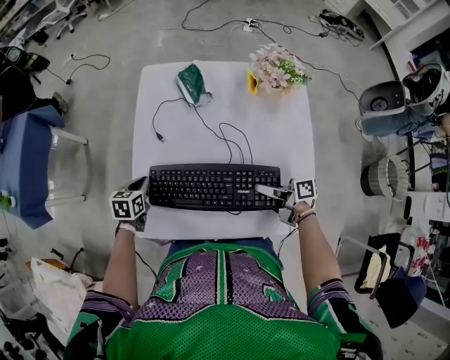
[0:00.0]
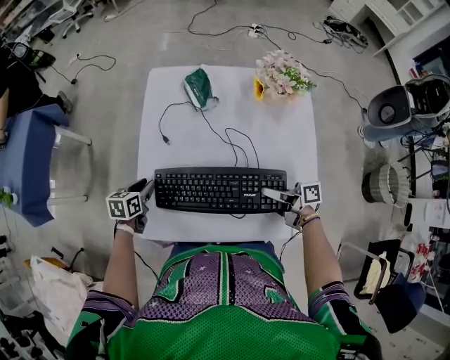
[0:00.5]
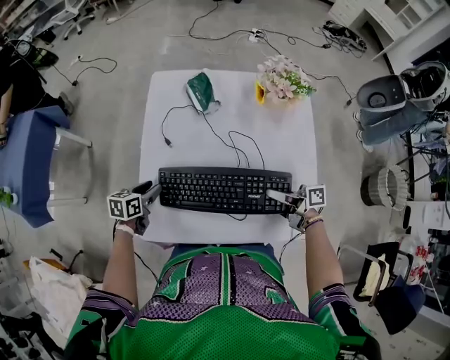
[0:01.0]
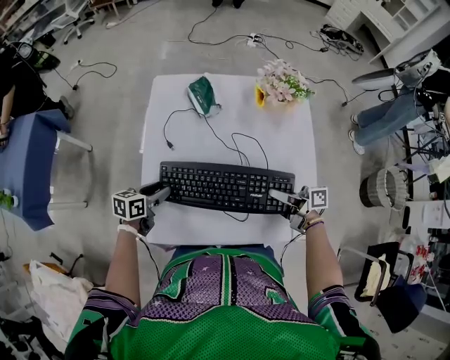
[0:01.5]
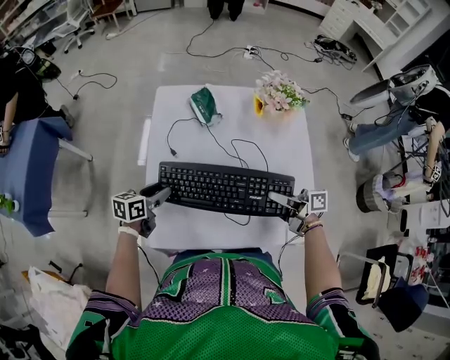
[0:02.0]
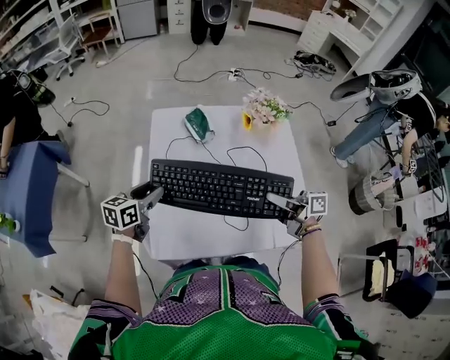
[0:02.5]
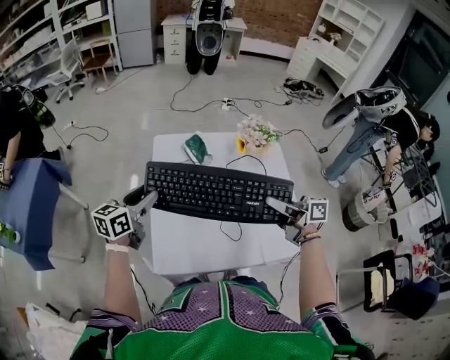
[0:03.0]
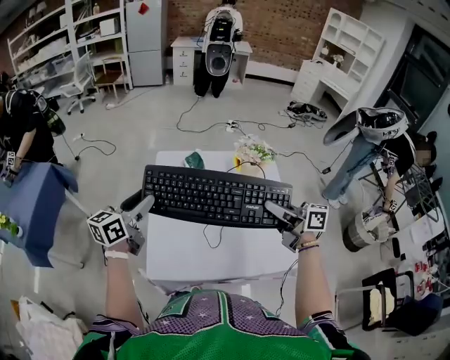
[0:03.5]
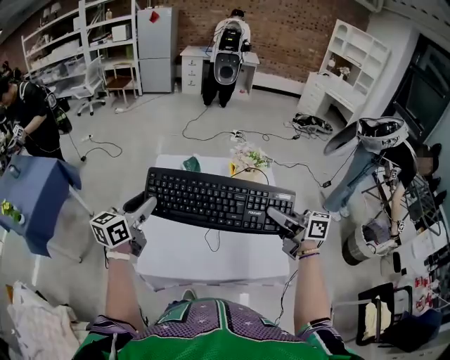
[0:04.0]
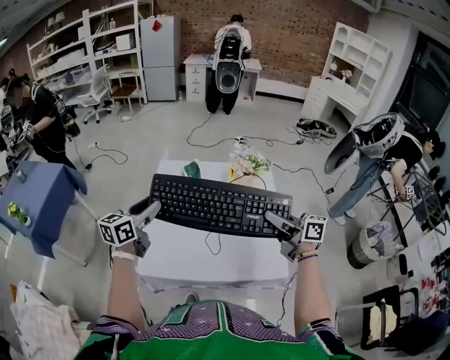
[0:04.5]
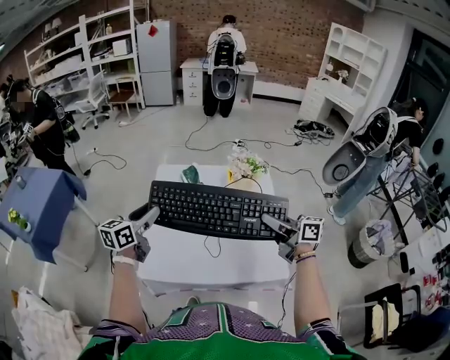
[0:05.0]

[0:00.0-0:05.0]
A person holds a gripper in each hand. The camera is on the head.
0:00.0 to 0:02.5: Both grippers move upward, approximately 15 cm. The left gripper turns by approximately 30 degrees, and opens, while the right gripper swivels roughly 20 degrees.
0:02.5 to 0:05.0: The right gripper goes some 15 cm upward and to the right, while the left gripper heads upward and backward, covering some 20 cm, and changes its angle by some 20 degrees.

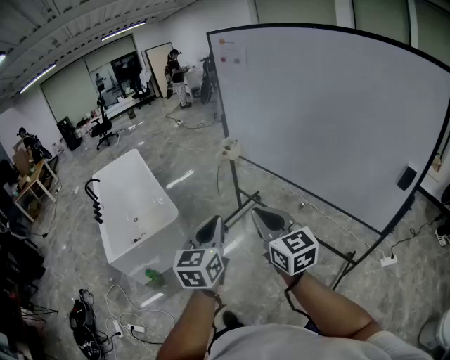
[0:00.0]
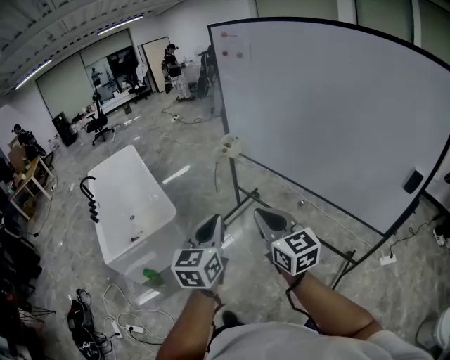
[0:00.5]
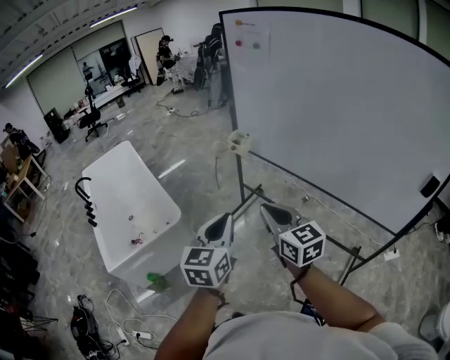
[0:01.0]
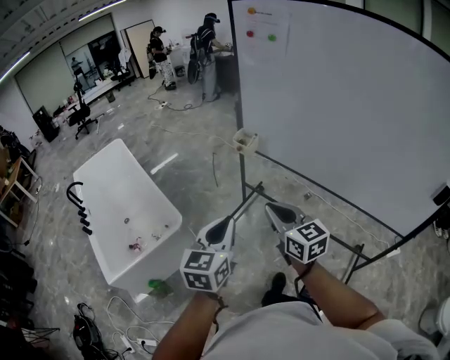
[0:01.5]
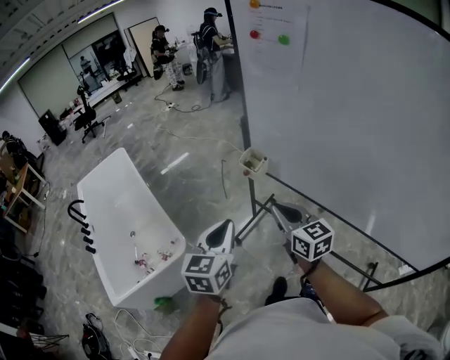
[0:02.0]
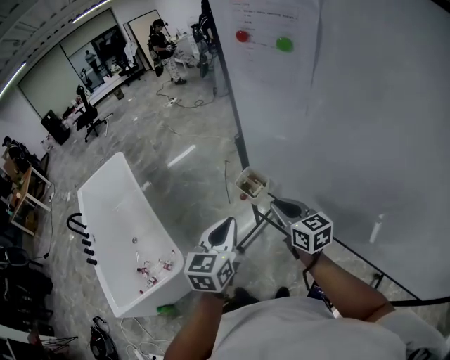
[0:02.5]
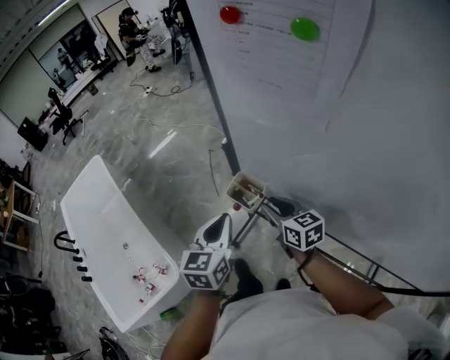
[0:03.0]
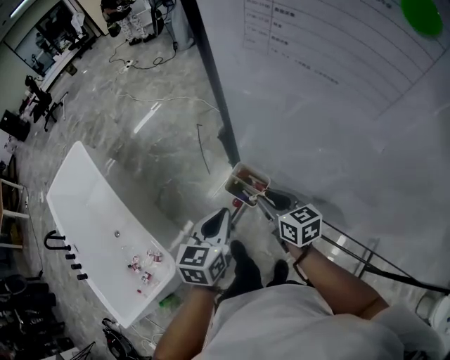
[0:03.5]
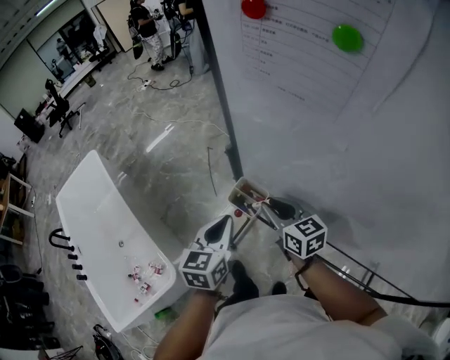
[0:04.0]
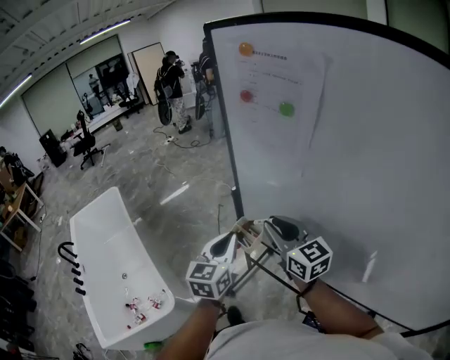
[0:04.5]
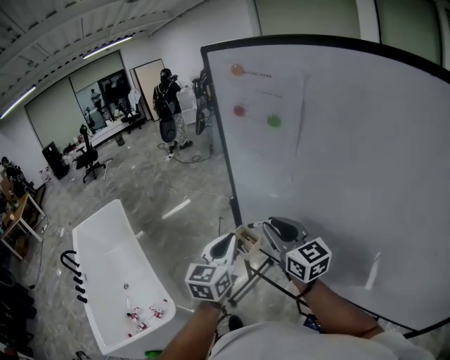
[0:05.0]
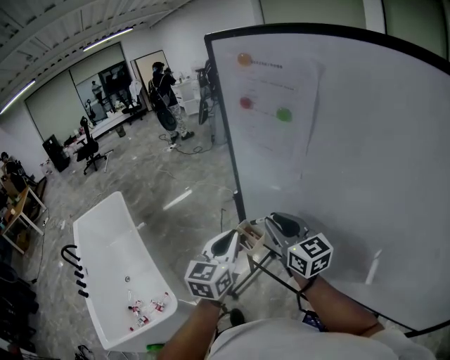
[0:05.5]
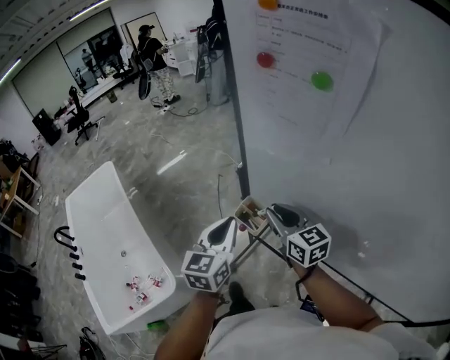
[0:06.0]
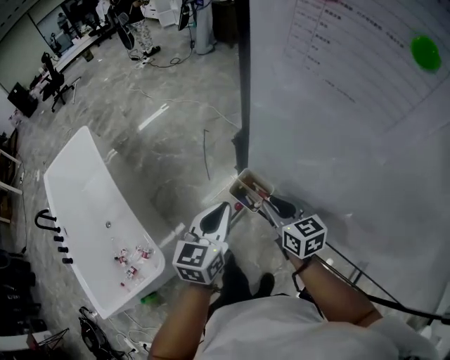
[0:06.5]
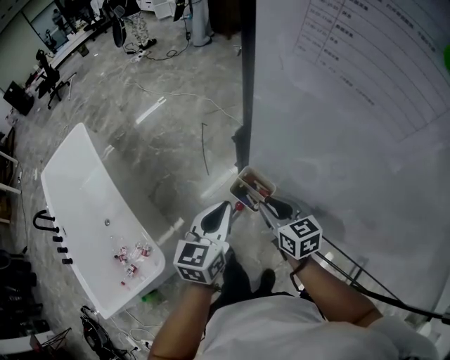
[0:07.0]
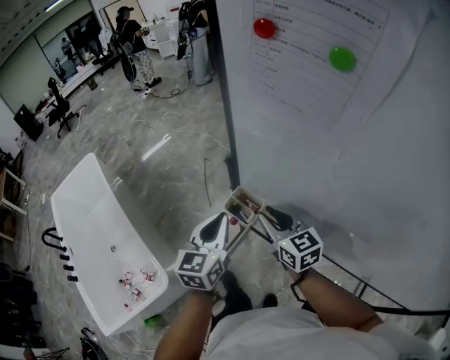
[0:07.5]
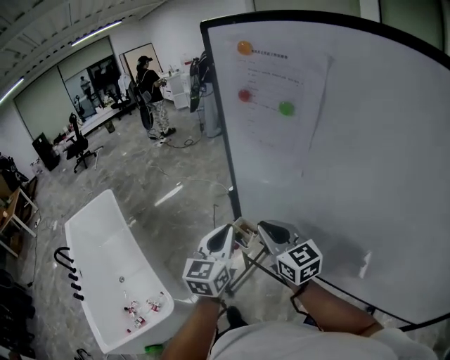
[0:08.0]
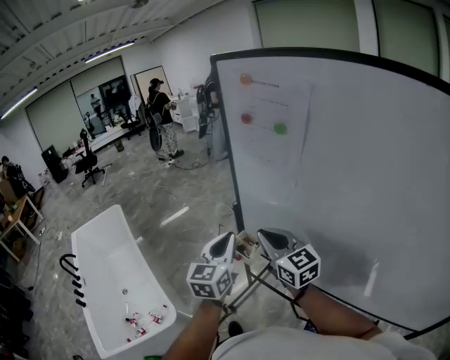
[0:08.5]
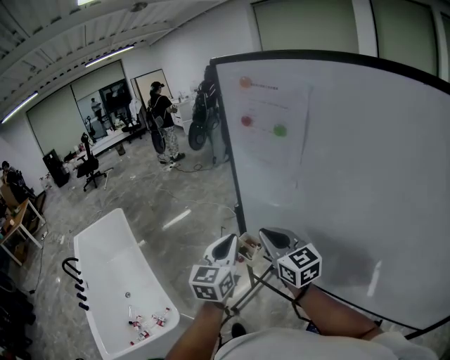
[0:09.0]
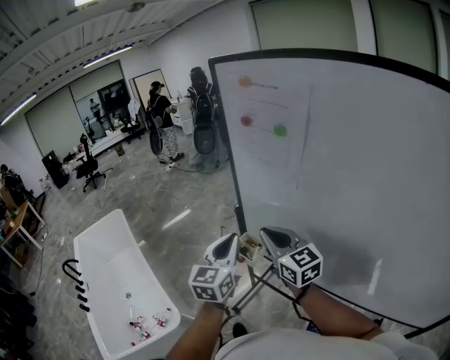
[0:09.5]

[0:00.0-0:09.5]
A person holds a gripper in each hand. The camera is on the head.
0:00.0 to 0:02.0: The two grippers travel together, forward, some 50 cm.
0:02.0 to 0:04.0: The two grippers go some 35 cm forward.
0:04.0 to 0:05.5: Both grippers move upward and backward, roughly 20 cm. The right gripper rotates about 20 degrees.
0:05.5 to 0:07.5: The two grippers go roughly 15 cm downward and forward.
0:07.5 to 0:09.5: The two grippers go about 20 cm upward and backward. The right gripper closes its fingers.

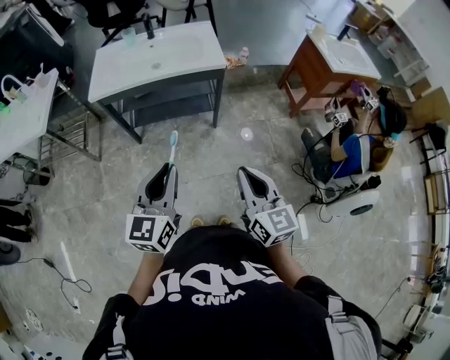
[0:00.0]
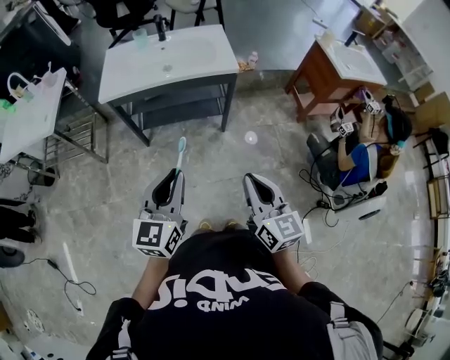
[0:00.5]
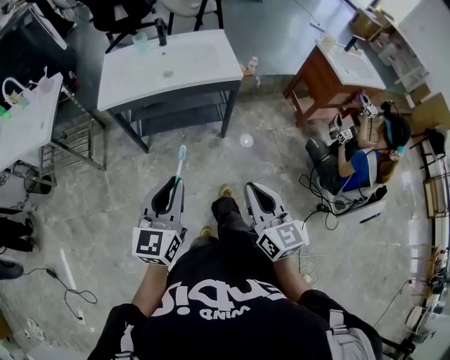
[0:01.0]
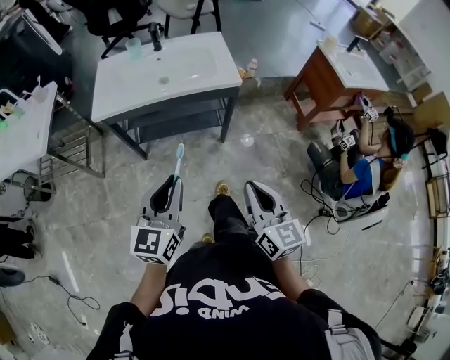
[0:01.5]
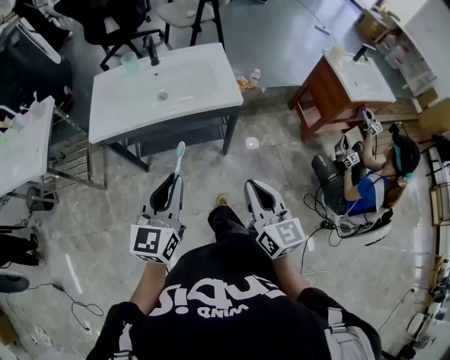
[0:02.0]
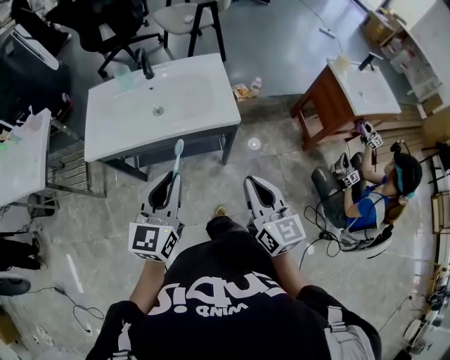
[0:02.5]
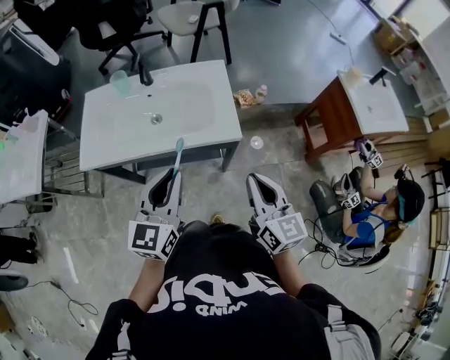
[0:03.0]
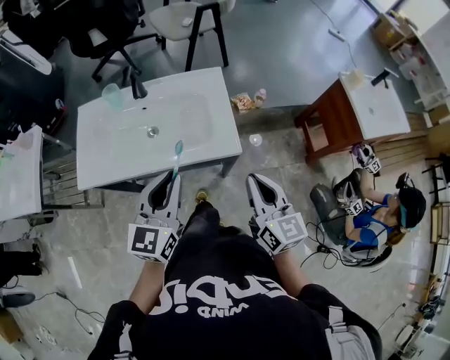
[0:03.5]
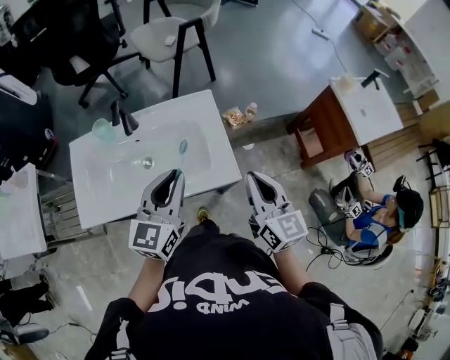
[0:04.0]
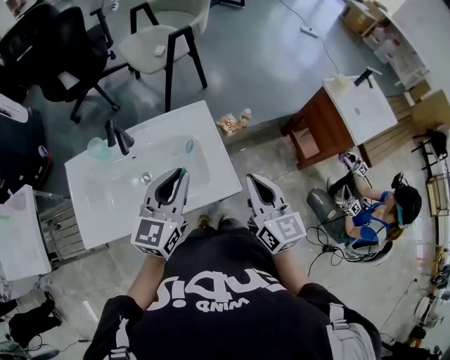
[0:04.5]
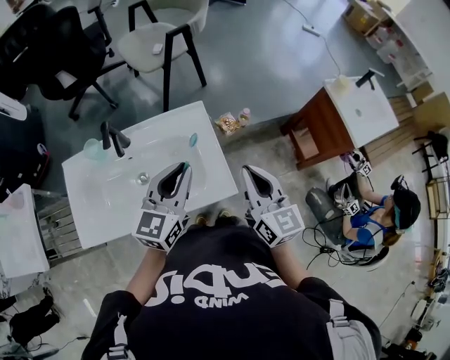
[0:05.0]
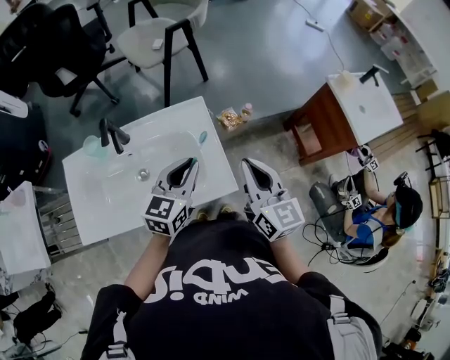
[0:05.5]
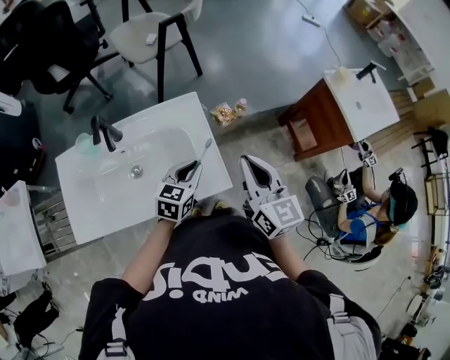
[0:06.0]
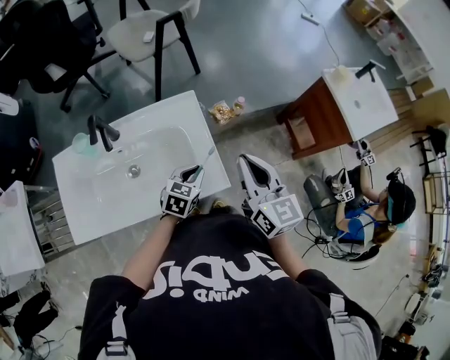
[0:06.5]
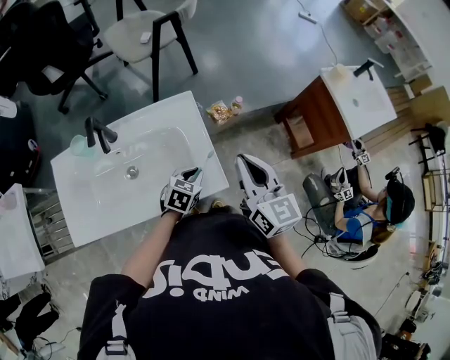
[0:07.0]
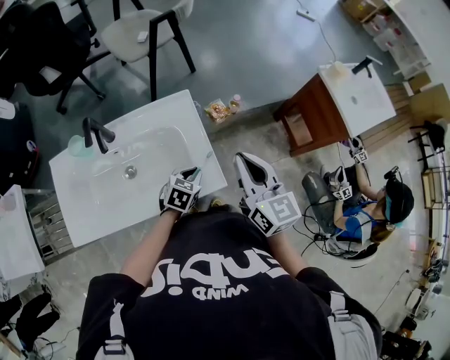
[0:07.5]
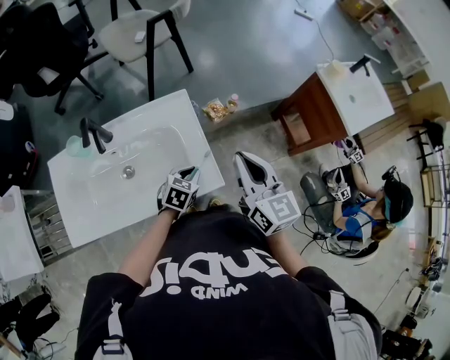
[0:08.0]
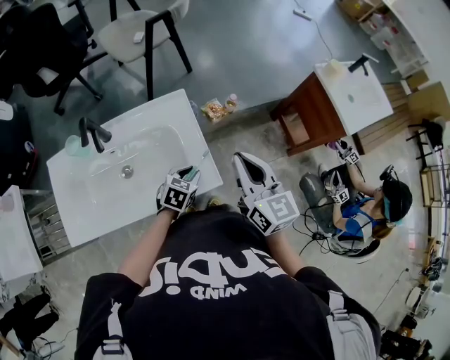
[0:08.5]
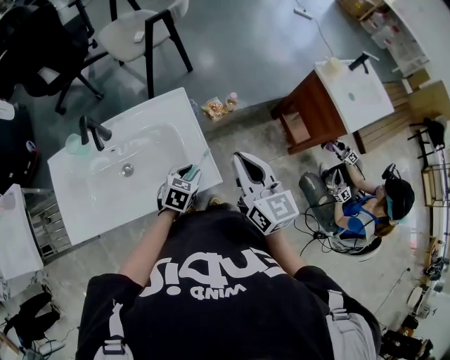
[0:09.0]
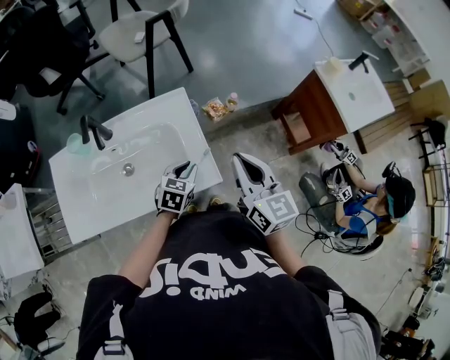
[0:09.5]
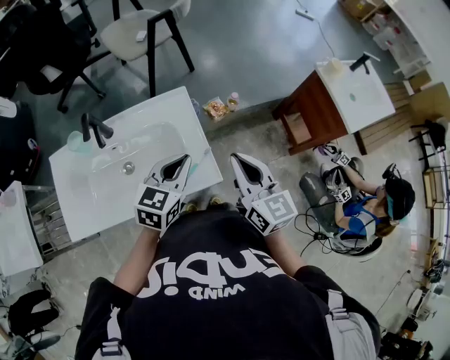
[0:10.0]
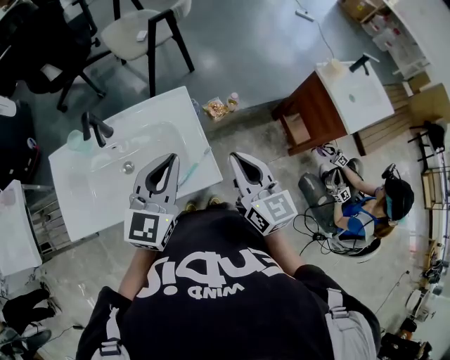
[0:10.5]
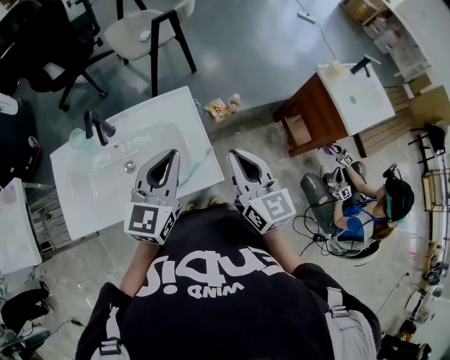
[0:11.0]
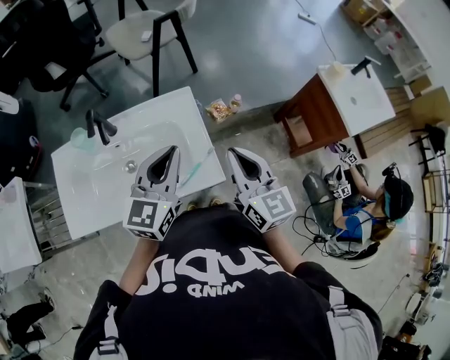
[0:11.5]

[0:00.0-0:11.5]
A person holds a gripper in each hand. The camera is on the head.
0:00.0 to 0:02.0: Both grippers travel together forward, some 20 cm.
0:02.0 to 0:04.0: The grippers both shift forward by about 35 cm.
0:04.0 to 0:06.0: The right gripper moves forward, roughly 10 cm. The left gripper is displaced downward, forward and to the right by some 20 cm, and rotates roughly 30 degrees.
0:06.0 to 0:07.5: The left gripper heads downward, covering approximately 10 cm.
0:07.5 to 0:09.5: The grippers make only small movements.
0:09.5 to 0:11.5: The left gripper is displaced upward by about 25 cm, and angles its fingers upward, by roughly 30 degrees.

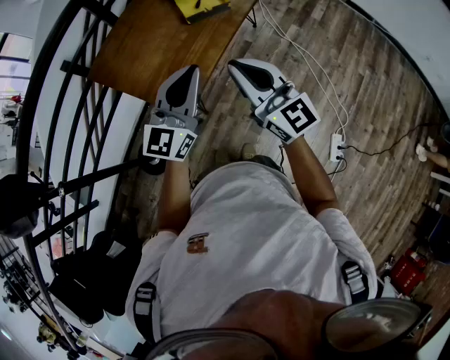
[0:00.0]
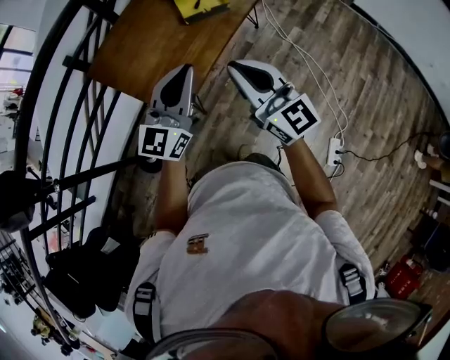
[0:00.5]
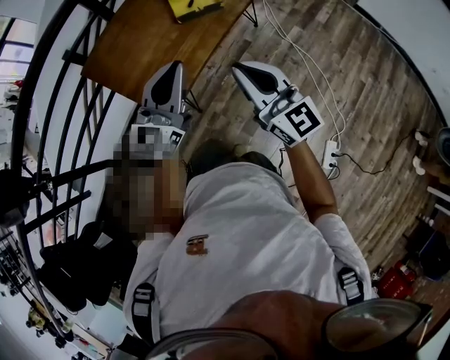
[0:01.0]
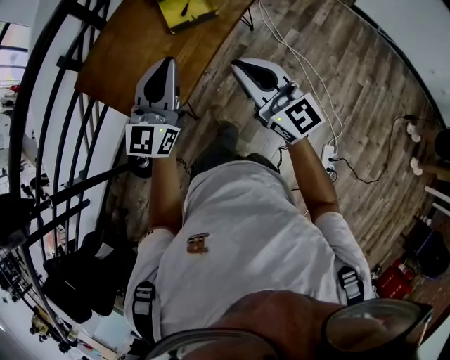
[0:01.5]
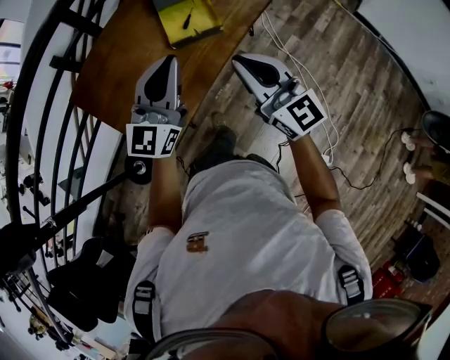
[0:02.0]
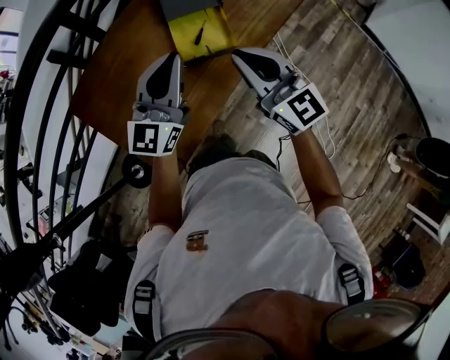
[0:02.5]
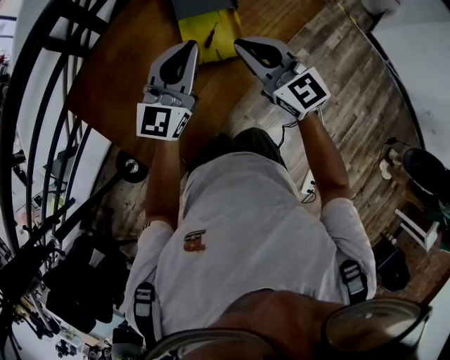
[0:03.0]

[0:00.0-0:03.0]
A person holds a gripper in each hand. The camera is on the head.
0:00.0 to 0:01.5: The right gripper goes approximately 15 cm to the right and forward. The left gripper goes roughly 15 cm forward and to the right.
0:01.5 to 0:03.0: Both grippers move forward, roughly 35 cm.
